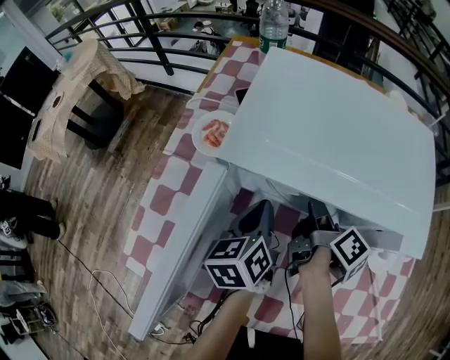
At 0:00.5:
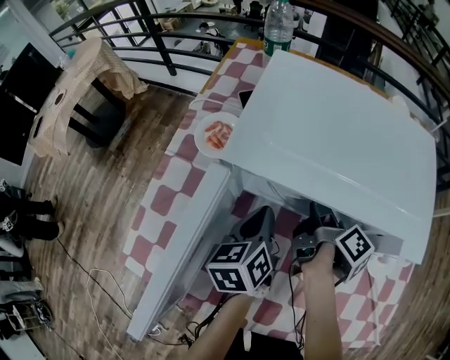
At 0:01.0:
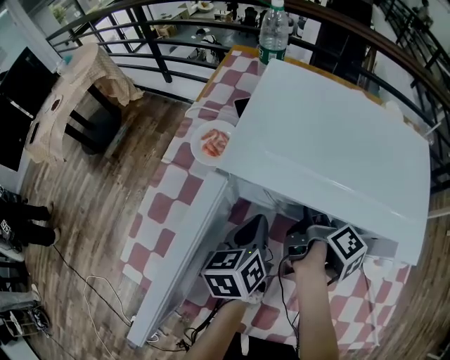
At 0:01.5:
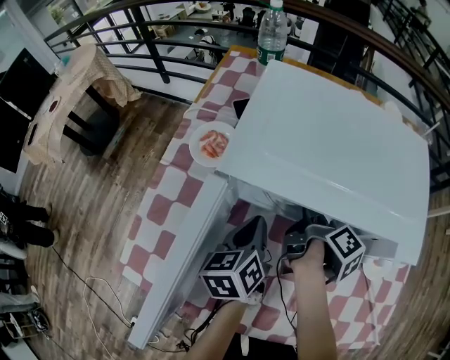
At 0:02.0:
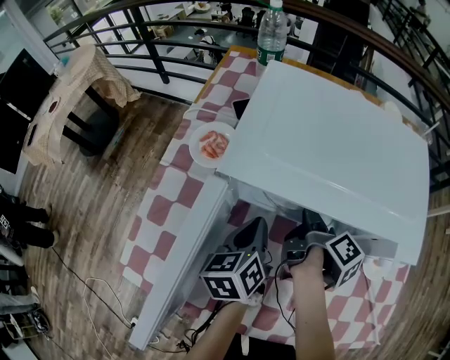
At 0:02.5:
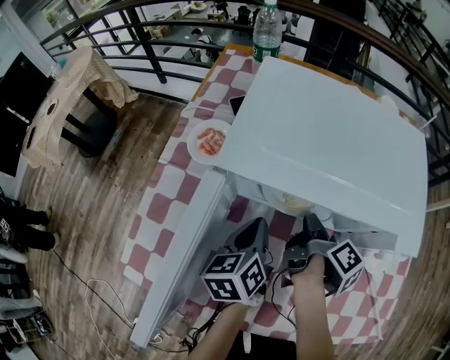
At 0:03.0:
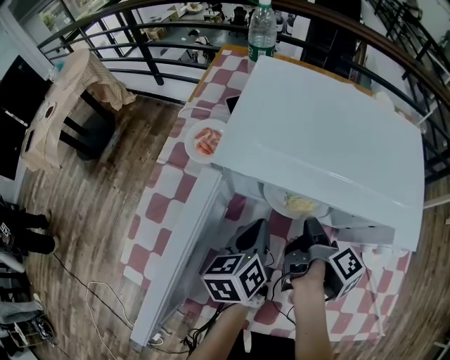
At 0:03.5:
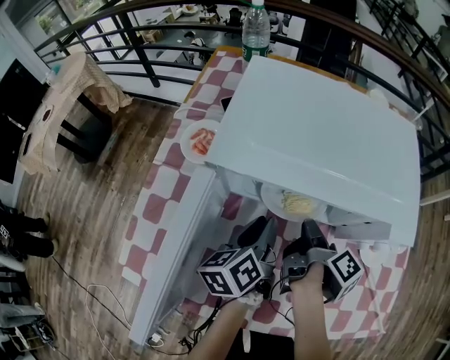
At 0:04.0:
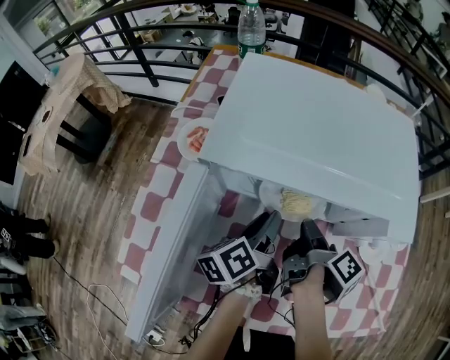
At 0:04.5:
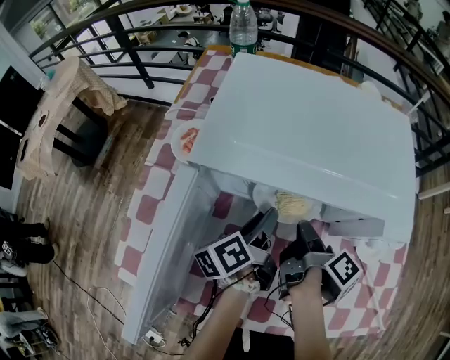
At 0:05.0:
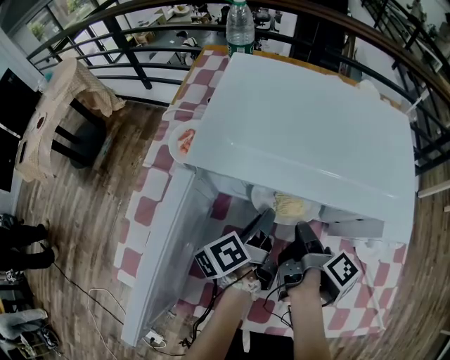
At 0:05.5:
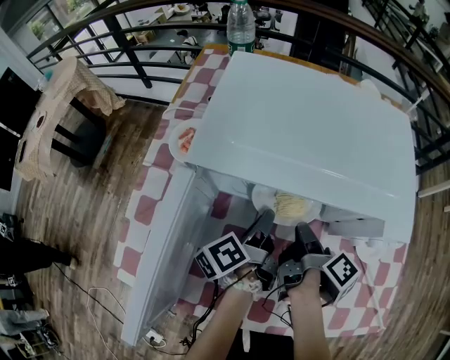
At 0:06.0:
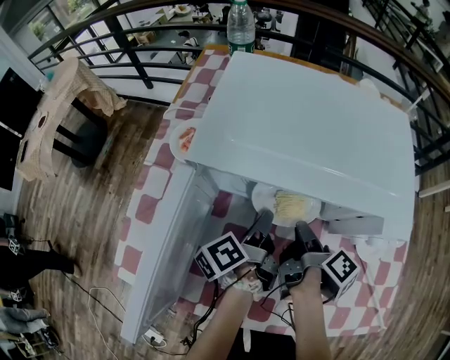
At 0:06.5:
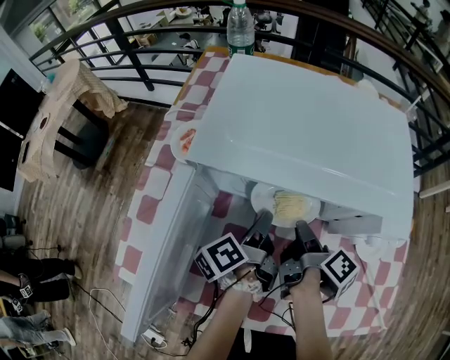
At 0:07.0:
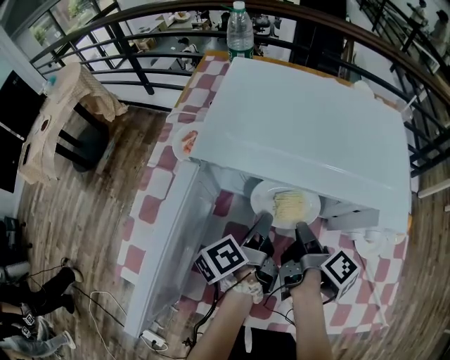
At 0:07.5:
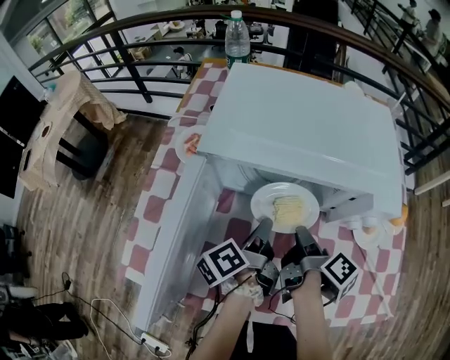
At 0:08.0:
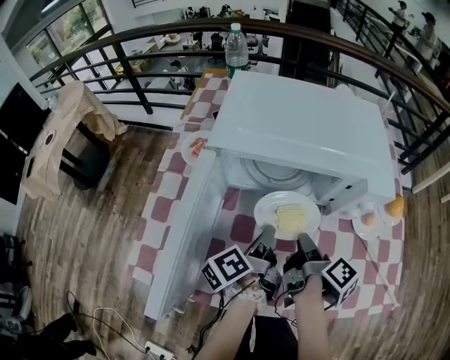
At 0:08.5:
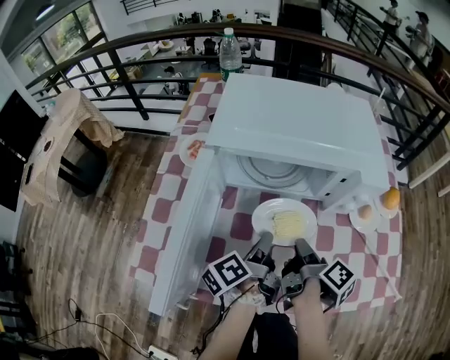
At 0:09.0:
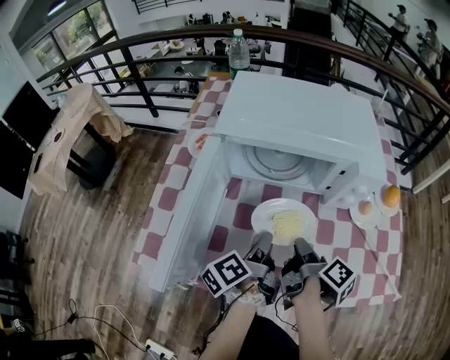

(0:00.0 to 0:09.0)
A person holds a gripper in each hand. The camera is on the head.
0:00.0 - 0:02.0: The right gripper closes.
0:02.0 - 0:04.5: The left gripper travels to the right by approximately 5 cm, turns by some 30 degrees, and opens up. The right gripper travels backward by some 5 cm.
0:04.5 - 0:07.0: The left gripper closes up.
0:07.0 - 0:09.0: Both grippers travel together backward, approximately 15 cm.

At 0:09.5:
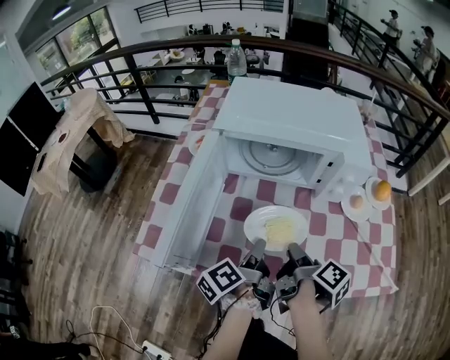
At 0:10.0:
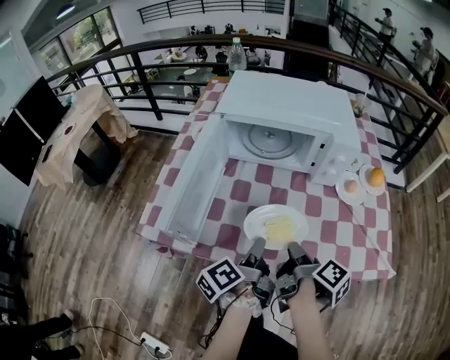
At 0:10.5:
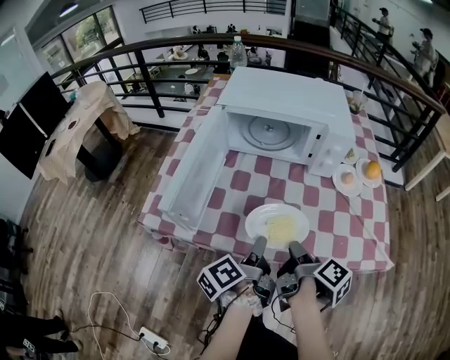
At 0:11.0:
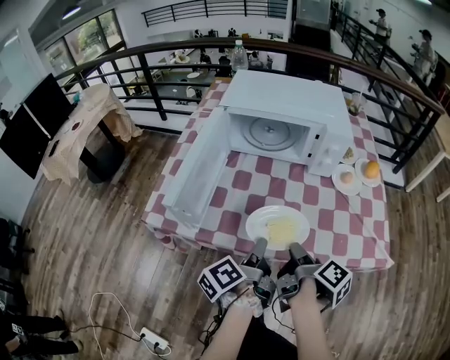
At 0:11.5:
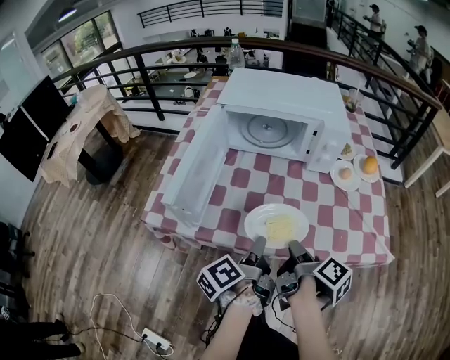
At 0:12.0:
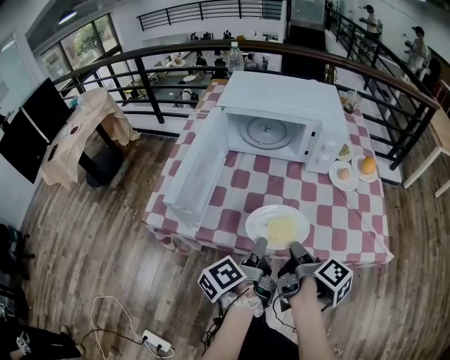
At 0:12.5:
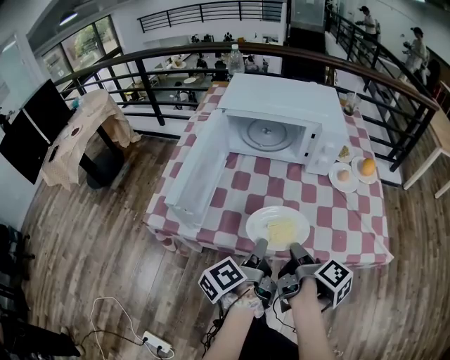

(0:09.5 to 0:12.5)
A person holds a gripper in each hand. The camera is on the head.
0:09.5 - 0:11.0: The grippers both shift backward by some 10 cm.
0:11.0 - 0:12.5: The grippers stay close to where they were, moving slightly.

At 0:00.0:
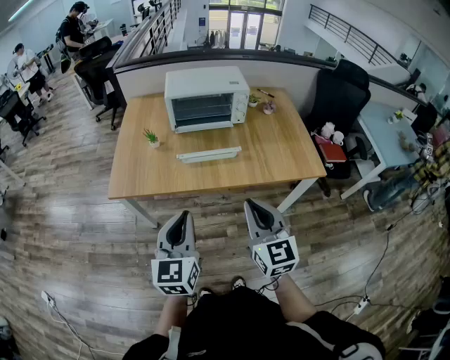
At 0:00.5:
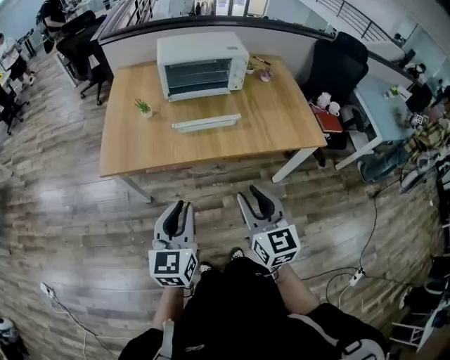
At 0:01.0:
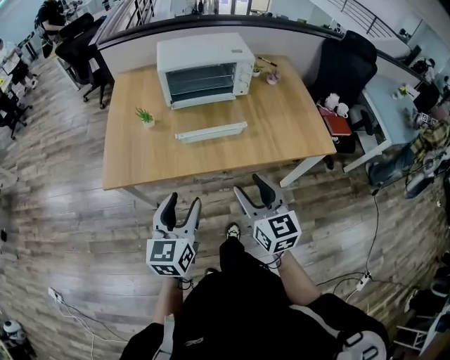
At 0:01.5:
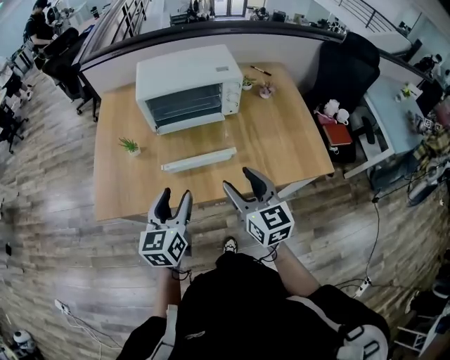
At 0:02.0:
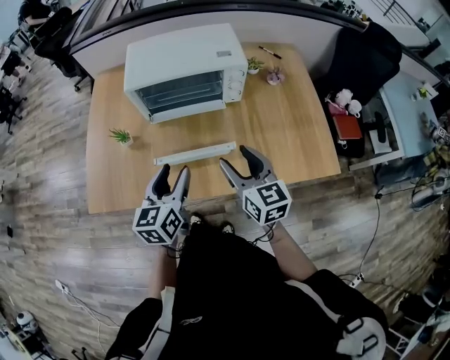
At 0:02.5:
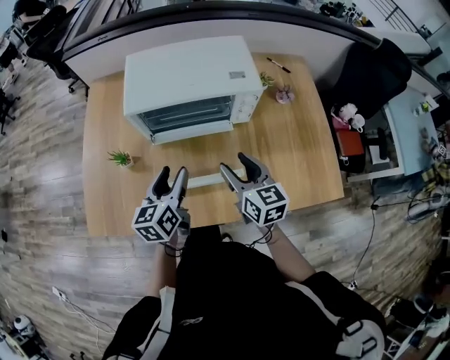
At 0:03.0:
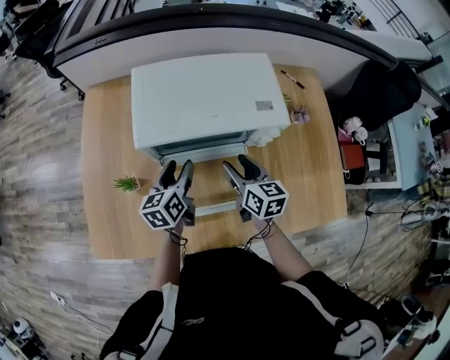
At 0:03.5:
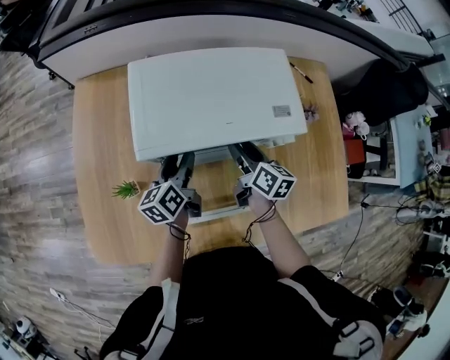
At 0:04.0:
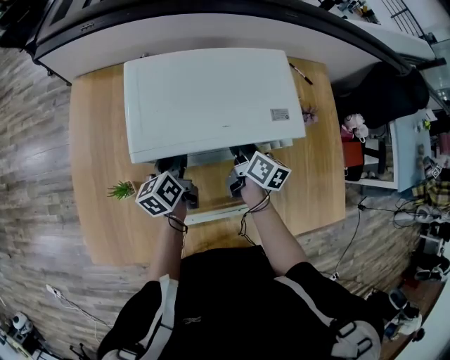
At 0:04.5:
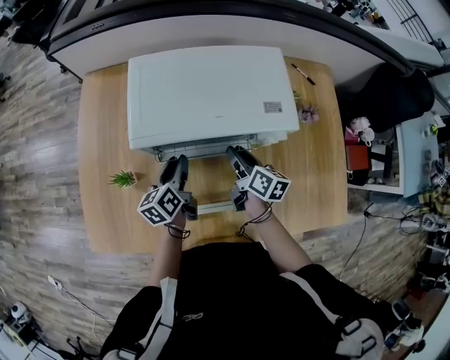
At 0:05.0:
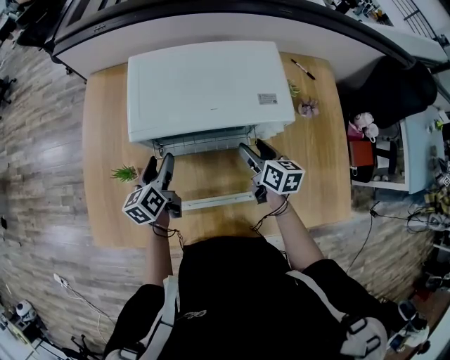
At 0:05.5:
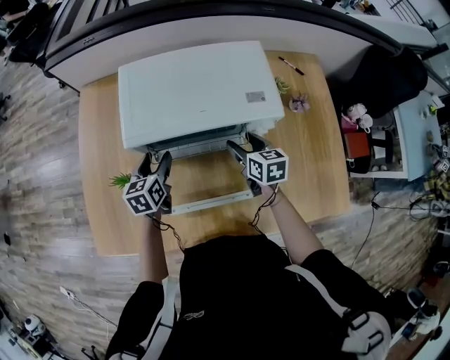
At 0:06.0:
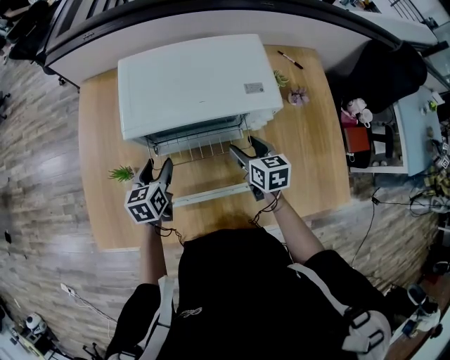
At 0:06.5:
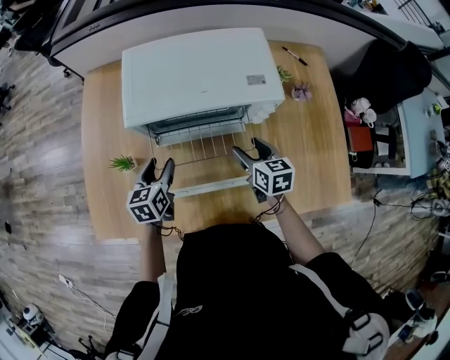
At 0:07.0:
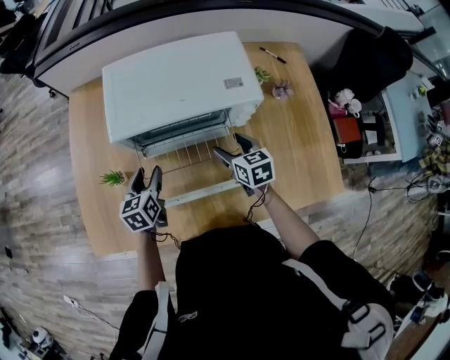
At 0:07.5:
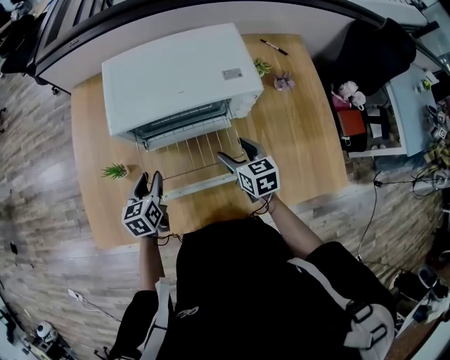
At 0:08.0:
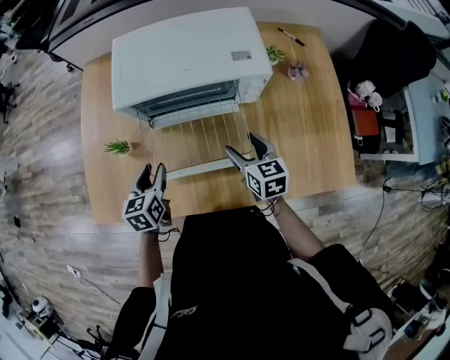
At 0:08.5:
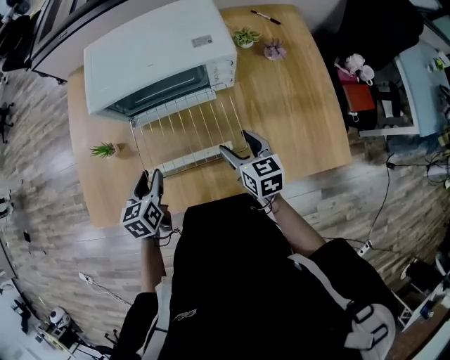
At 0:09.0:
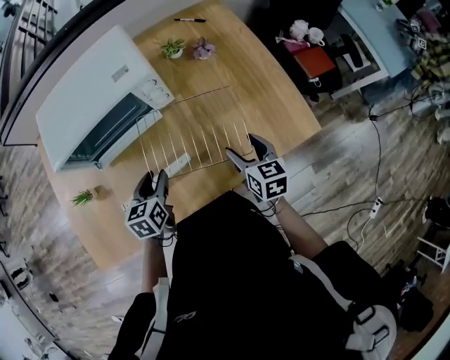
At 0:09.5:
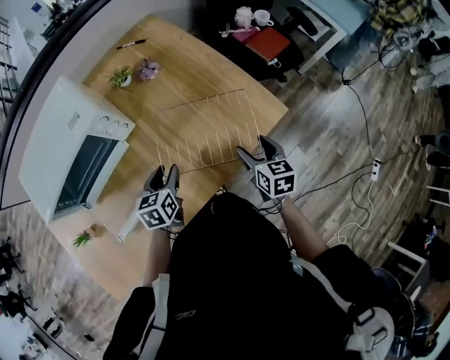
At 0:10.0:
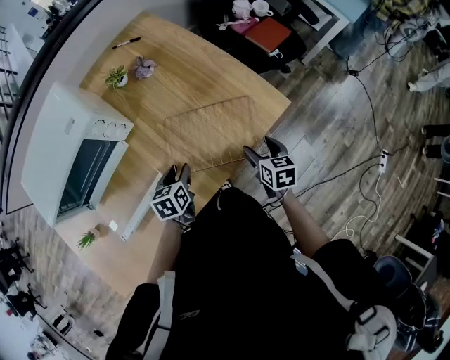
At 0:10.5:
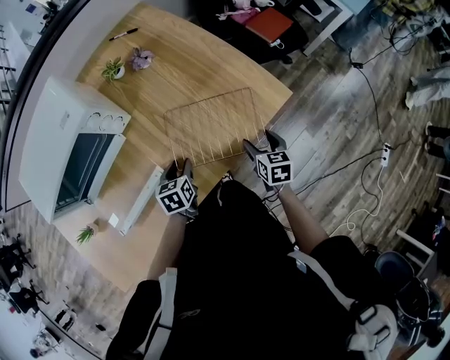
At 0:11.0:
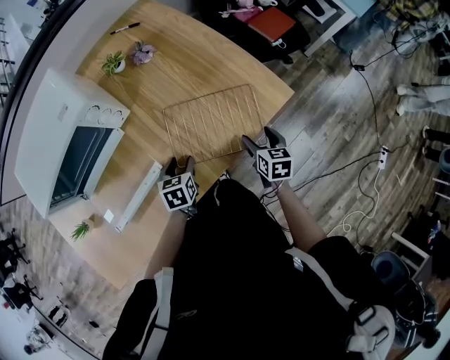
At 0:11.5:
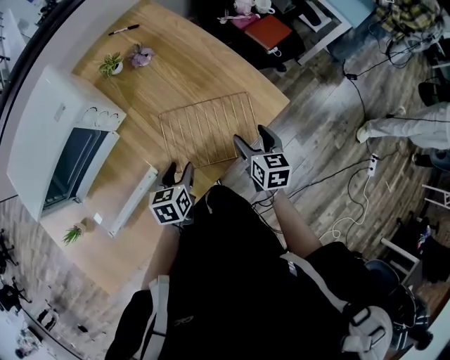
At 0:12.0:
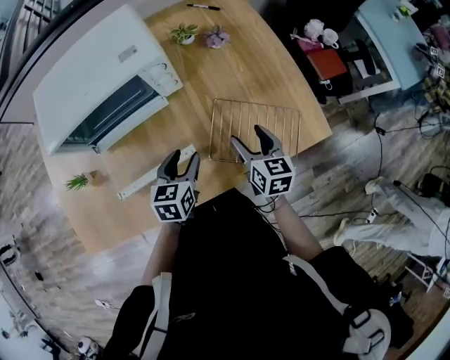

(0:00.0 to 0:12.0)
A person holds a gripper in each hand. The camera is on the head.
0:00.0 - 0:02.0: The grippers both shift forward by approximately 35 cm. The left gripper opens; the right gripper opens its fingers.
0:02.0 - 0:04.0: The left gripper moves forward, roughly 35 cm, and swivels about 30 degrees. Meanwhile the right gripper shifts some 40 cm forward and downward, and rotates roughly 40 degrees.
0:04.0 - 0:06.0: The two grippers go some 10 cm backward. The left gripper turns by approximately 30 degrees, and opens up; the right gripper rotates approximately 30 degrees, and opens up.
0:06.0 - 0:08.0: The grippers both shift backward by about 10 cm.
0:08.0 - 0:10.0: The right gripper moves some 40 cm, and swivels roughly 50 degrees. The left gripper changes place by about 40 cm, and turns by about 40 degrees.
0:10.0 - 0:12.0: The right gripper heads to the left and upward, covering about 20 cm, and rotates some 20 degrees; the left gripper moves to the left and upward, approximately 10 cm.

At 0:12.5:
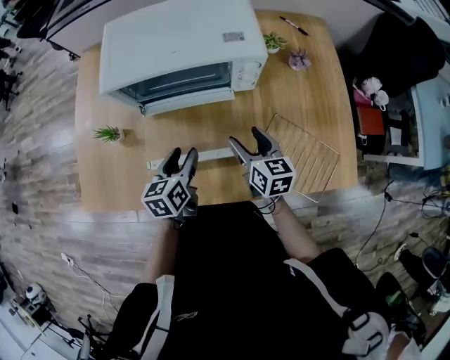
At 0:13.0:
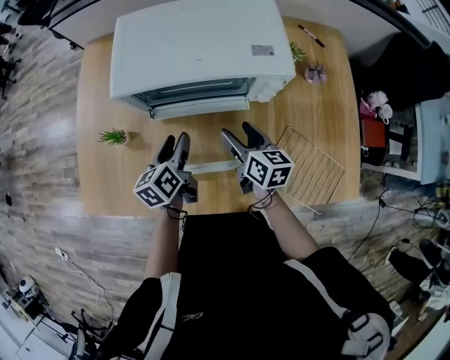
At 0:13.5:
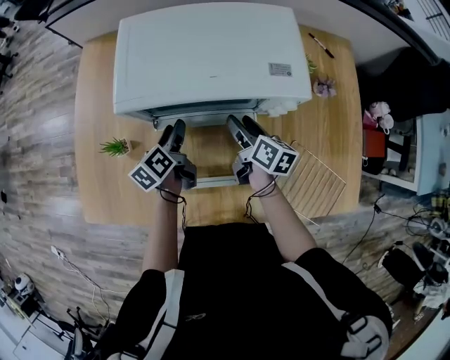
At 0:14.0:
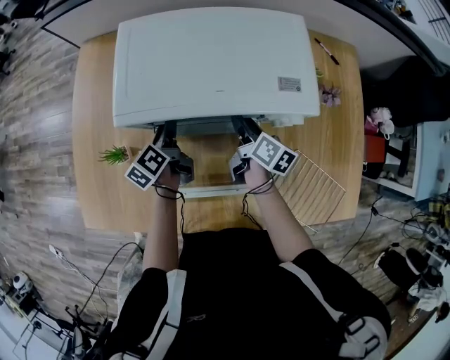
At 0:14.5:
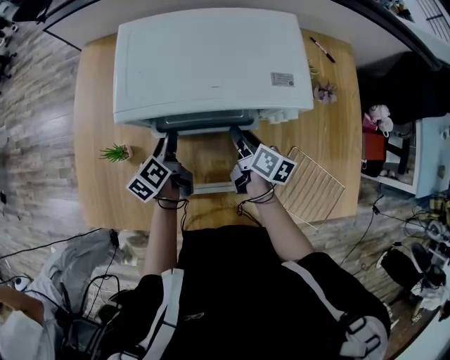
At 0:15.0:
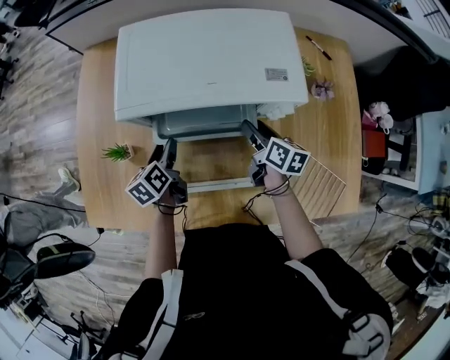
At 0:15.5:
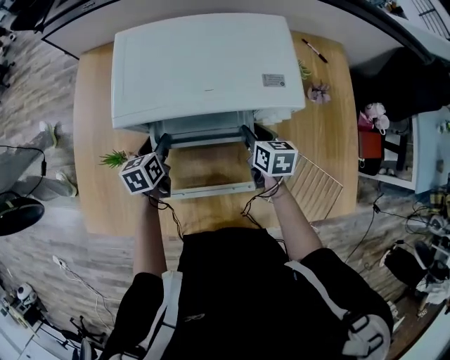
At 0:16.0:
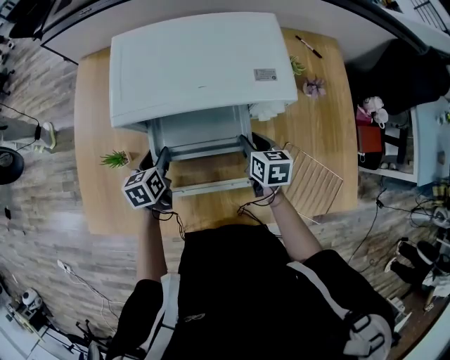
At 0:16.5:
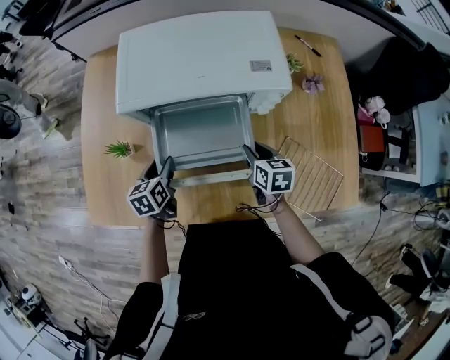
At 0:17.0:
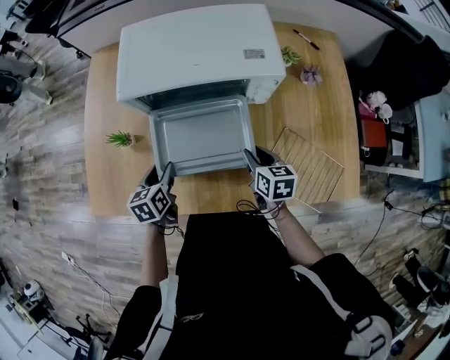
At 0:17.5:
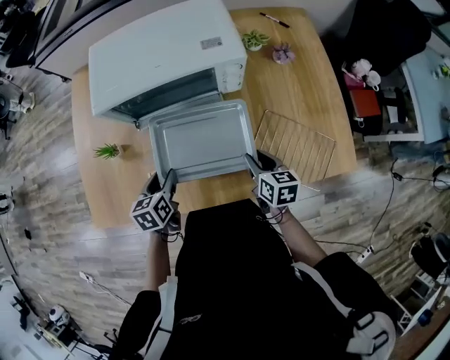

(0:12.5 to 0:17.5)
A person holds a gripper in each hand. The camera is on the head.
0:12.5 - 0:15.0: The left gripper heads forward and to the left, covering about 20 cm, and changes its angle by approximately 20 degrees. The right gripper shifts roughly 15 cm forward, and rotates approximately 20 degrees.
0:15.0 - 0:17.5: The grippers both shift backward by some 20 cm. The left gripper swivels approximately 30 degrees.
